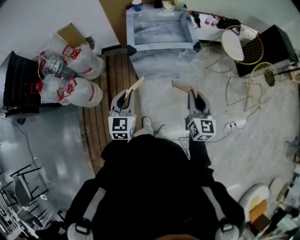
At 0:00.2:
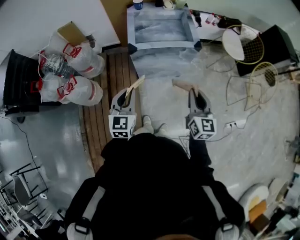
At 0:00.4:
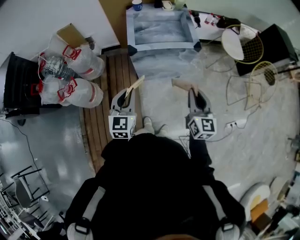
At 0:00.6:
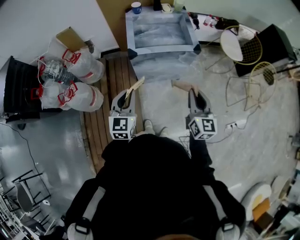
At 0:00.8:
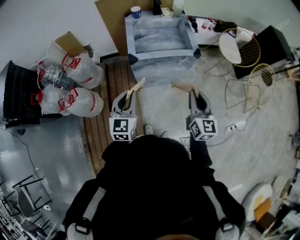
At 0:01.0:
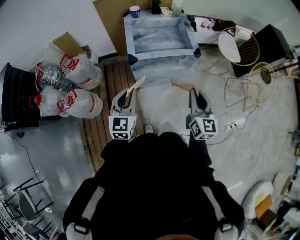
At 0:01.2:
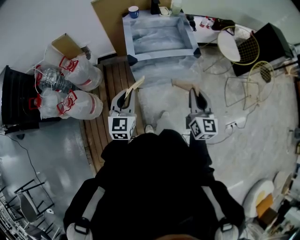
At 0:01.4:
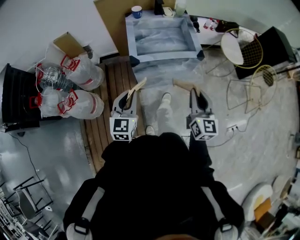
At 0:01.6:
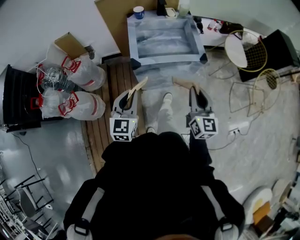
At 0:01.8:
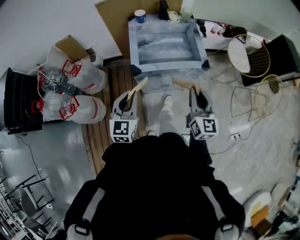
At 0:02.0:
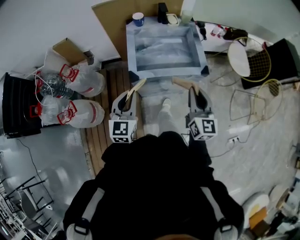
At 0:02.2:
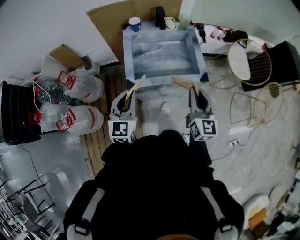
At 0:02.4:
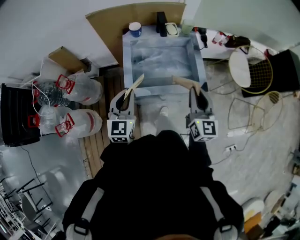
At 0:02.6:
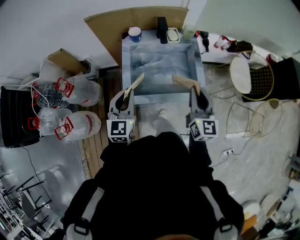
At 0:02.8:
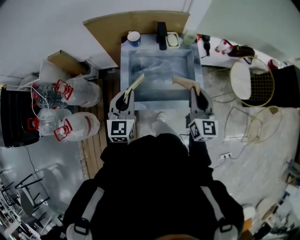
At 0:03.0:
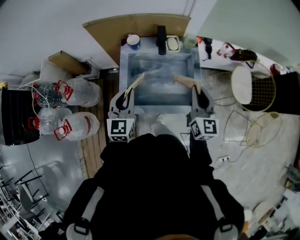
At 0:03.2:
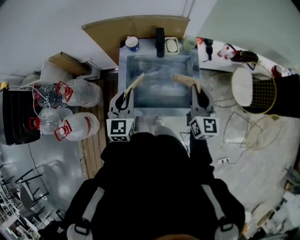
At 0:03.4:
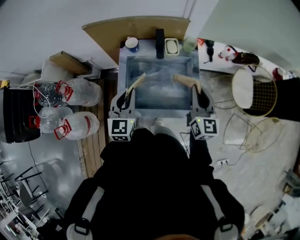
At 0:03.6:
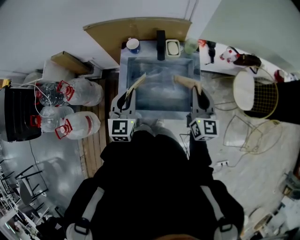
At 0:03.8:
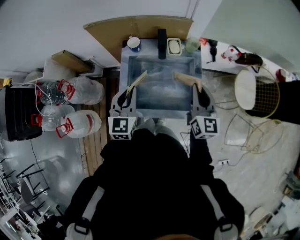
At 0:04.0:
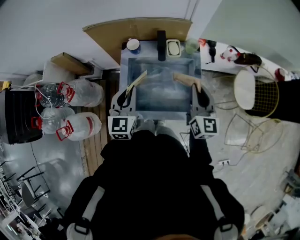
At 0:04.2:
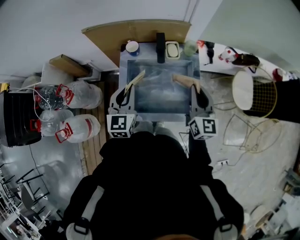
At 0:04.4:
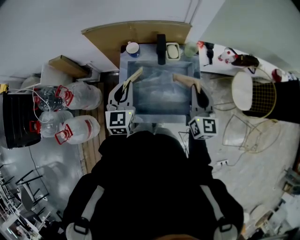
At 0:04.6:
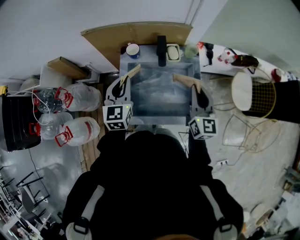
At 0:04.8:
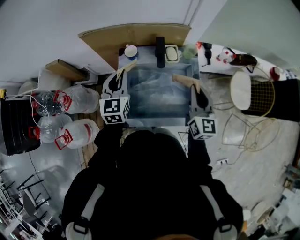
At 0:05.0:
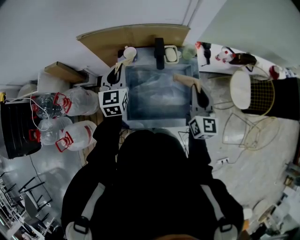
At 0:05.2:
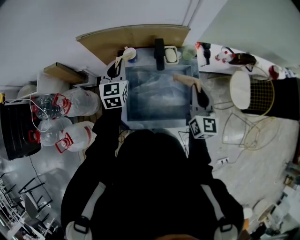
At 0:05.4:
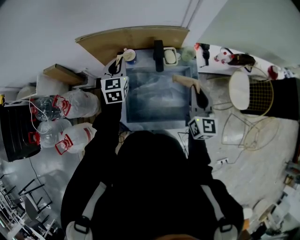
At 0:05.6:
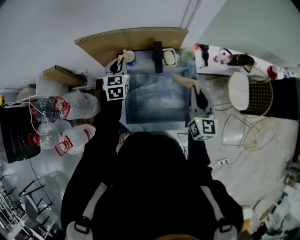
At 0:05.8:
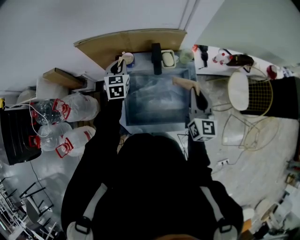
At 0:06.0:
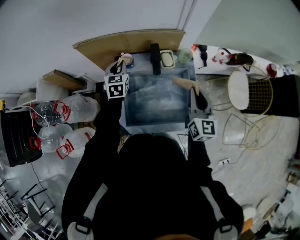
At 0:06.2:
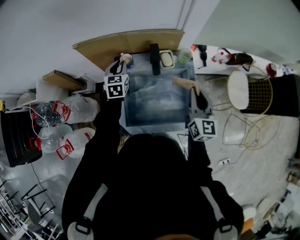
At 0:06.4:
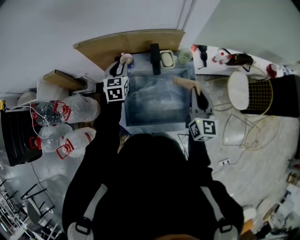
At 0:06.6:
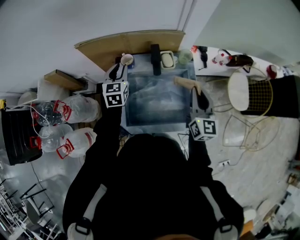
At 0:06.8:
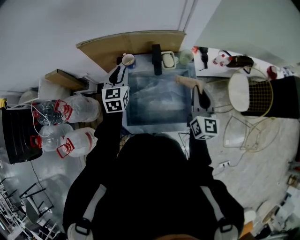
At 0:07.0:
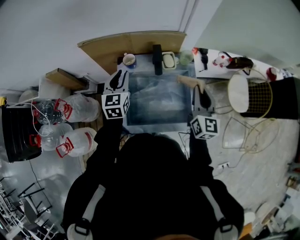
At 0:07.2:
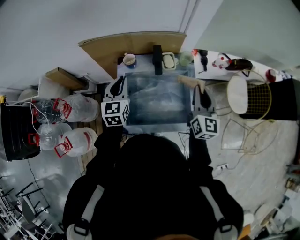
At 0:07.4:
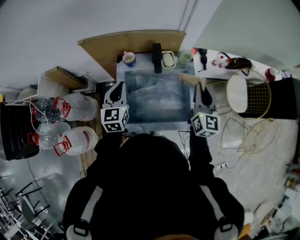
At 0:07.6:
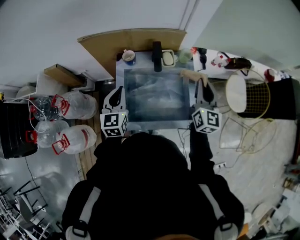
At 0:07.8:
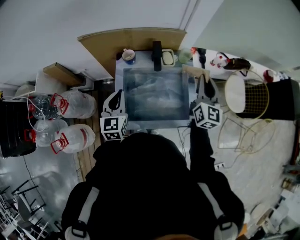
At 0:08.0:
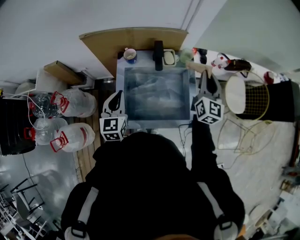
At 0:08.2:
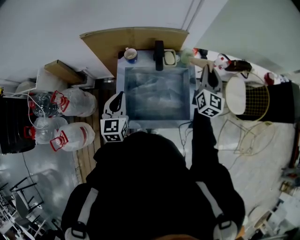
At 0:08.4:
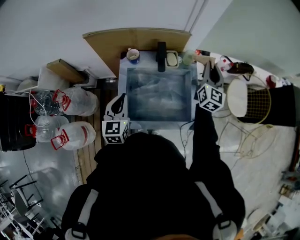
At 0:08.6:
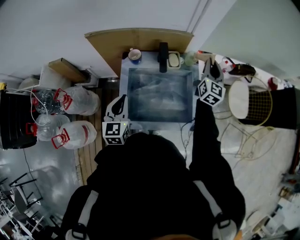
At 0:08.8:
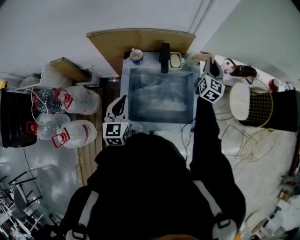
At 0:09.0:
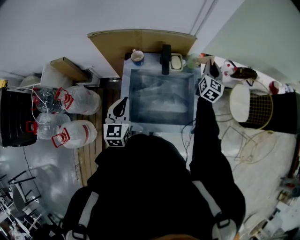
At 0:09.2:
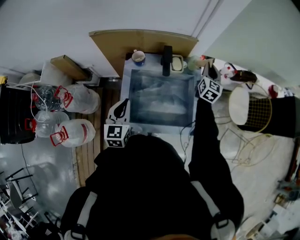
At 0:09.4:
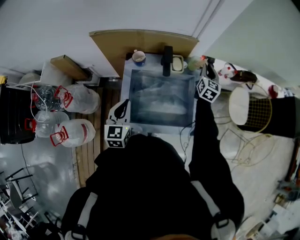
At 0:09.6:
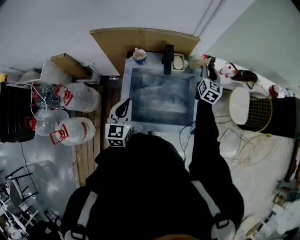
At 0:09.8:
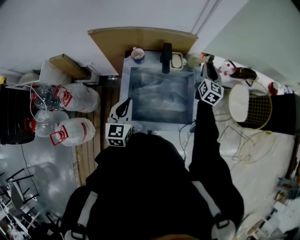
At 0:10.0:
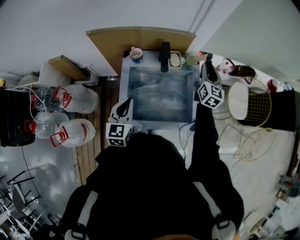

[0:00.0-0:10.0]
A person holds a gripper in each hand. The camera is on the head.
0:00.0 to 0:01.4: Both grippers travel together forward, some 10 cm.
0:01.4 to 0:02.8: The two grippers go roughly 35 cm forward.
0:02.8 to 0:04.2: The two grippers go approximately 10 cm forward.
0:04.2 to 0:05.8: The left gripper moves forward, roughly 20 cm.
0:05.8 to 0:07.2: The left gripper travels backward and upward by some 10 cm.
0:07.2 to 0:08.6: The right gripper is displaced forward by some 15 cm; the left gripper shifts about 10 cm backward.

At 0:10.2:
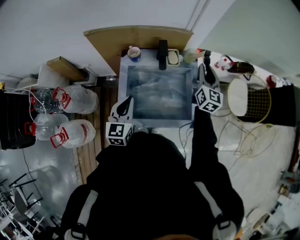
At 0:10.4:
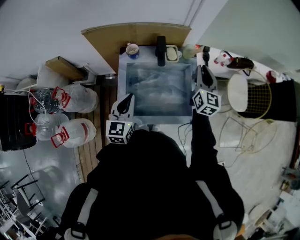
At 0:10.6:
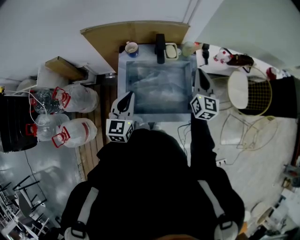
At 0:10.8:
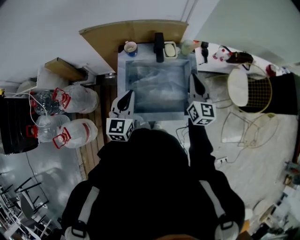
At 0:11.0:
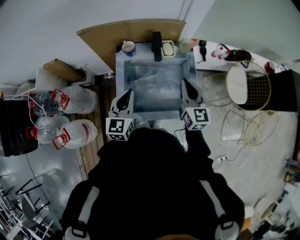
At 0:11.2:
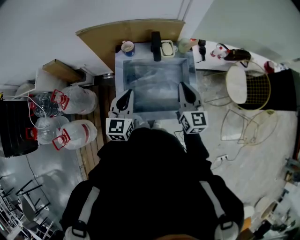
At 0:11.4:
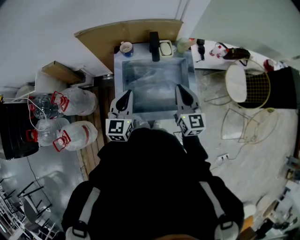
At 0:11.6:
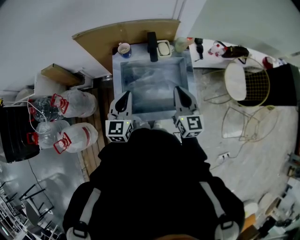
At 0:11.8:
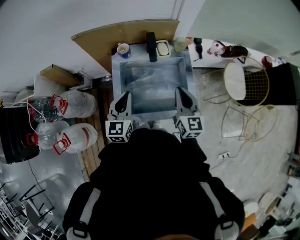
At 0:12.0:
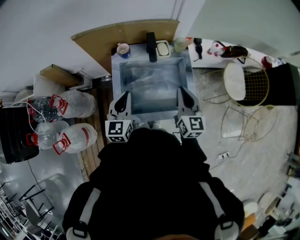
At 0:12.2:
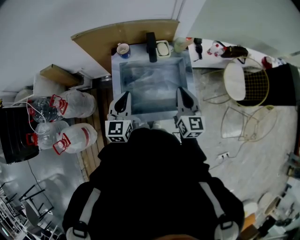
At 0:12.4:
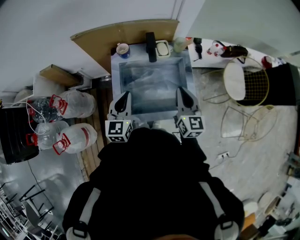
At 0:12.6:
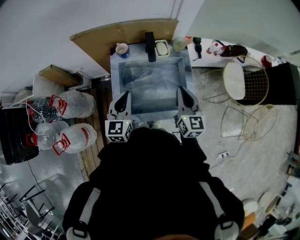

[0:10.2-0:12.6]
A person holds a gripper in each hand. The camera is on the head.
0:10.2 to 0:11.4: The right gripper heads backward and to the left, covering roughly 20 cm, and closes its fingers.
0:11.4 to 0:12.6: The grippers move only a little.

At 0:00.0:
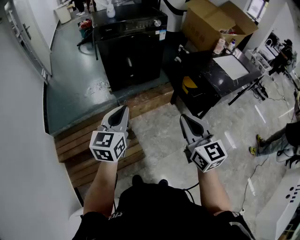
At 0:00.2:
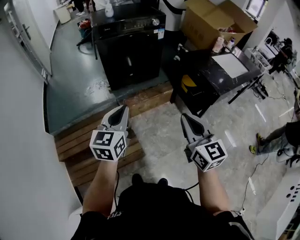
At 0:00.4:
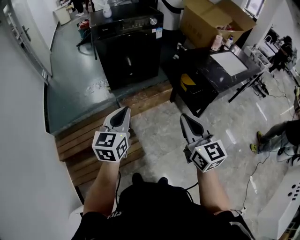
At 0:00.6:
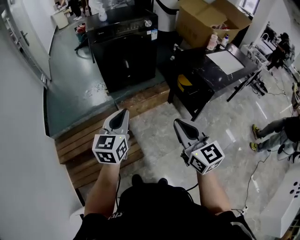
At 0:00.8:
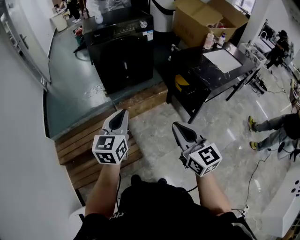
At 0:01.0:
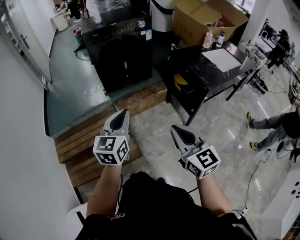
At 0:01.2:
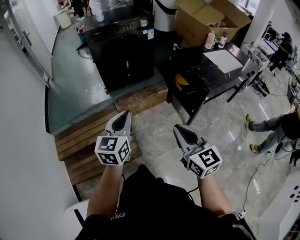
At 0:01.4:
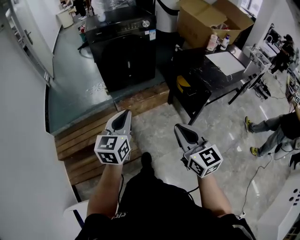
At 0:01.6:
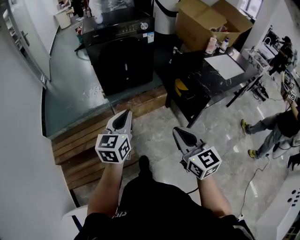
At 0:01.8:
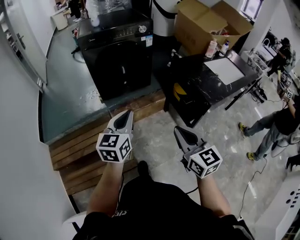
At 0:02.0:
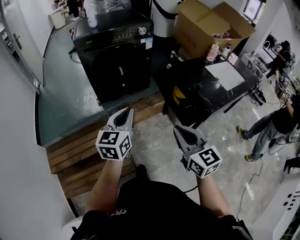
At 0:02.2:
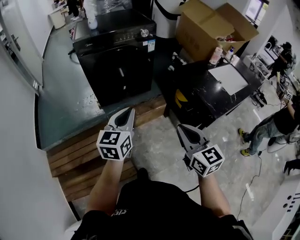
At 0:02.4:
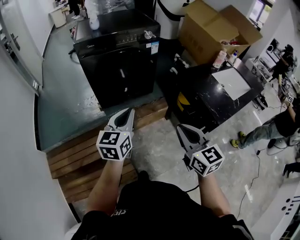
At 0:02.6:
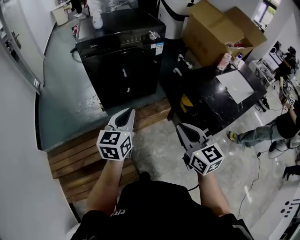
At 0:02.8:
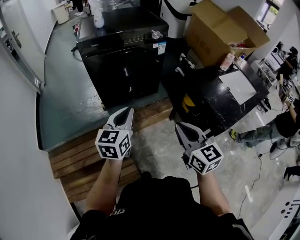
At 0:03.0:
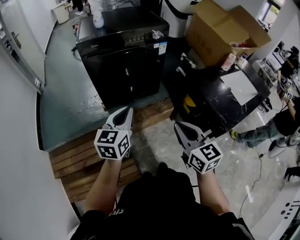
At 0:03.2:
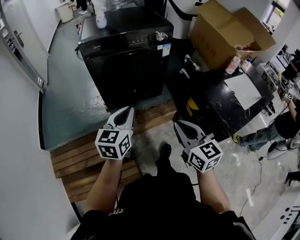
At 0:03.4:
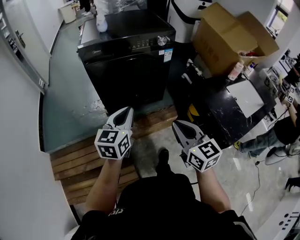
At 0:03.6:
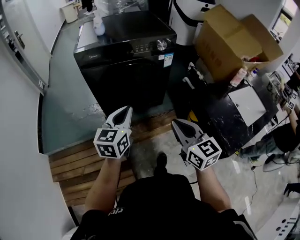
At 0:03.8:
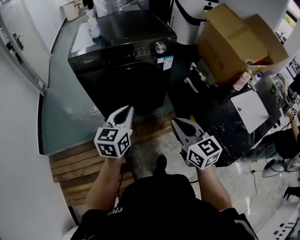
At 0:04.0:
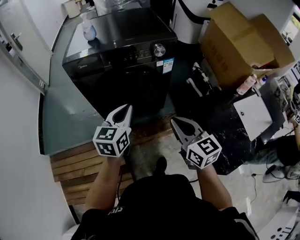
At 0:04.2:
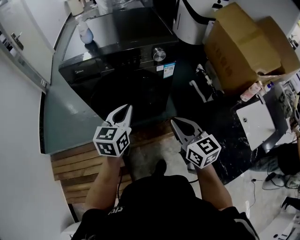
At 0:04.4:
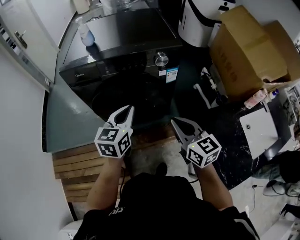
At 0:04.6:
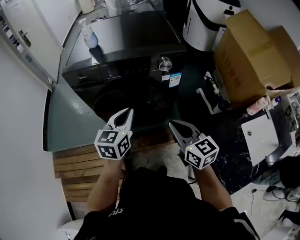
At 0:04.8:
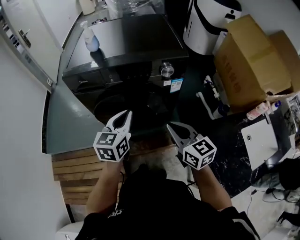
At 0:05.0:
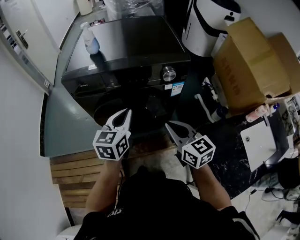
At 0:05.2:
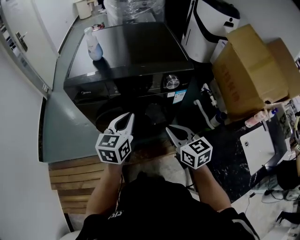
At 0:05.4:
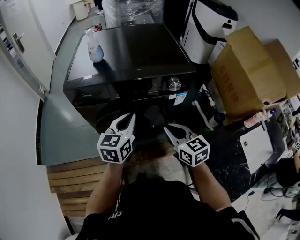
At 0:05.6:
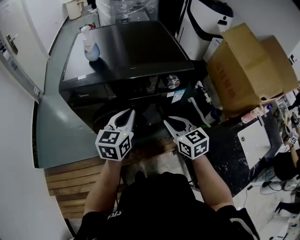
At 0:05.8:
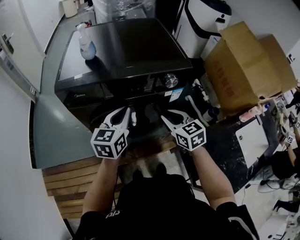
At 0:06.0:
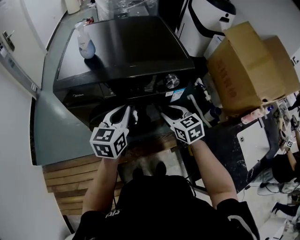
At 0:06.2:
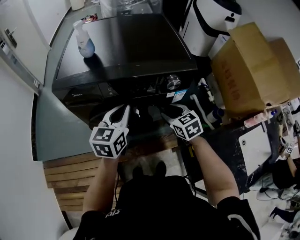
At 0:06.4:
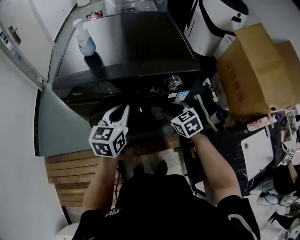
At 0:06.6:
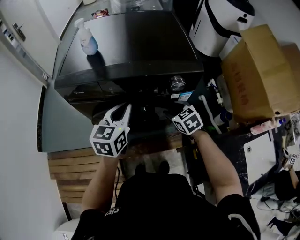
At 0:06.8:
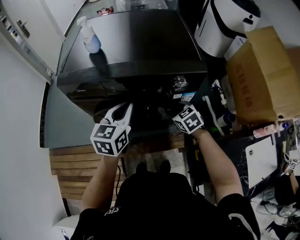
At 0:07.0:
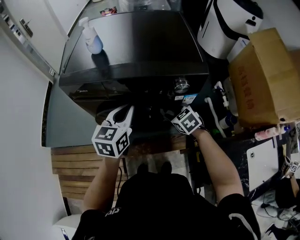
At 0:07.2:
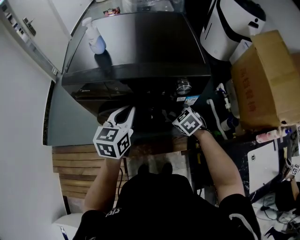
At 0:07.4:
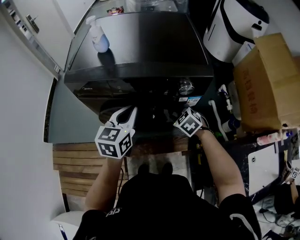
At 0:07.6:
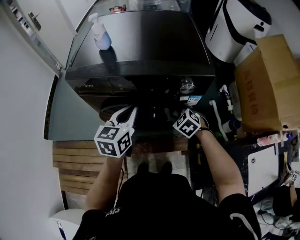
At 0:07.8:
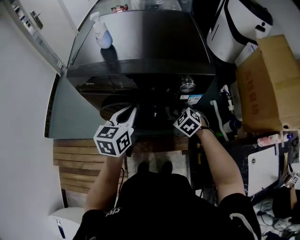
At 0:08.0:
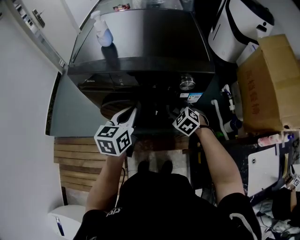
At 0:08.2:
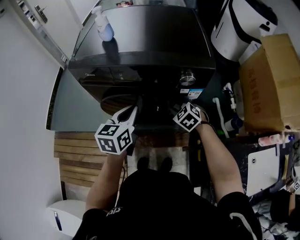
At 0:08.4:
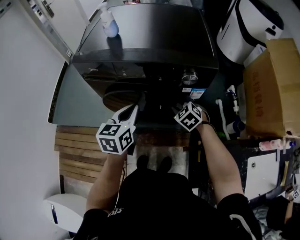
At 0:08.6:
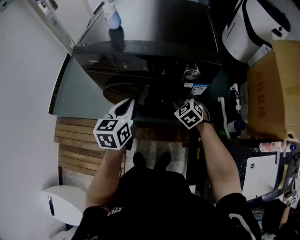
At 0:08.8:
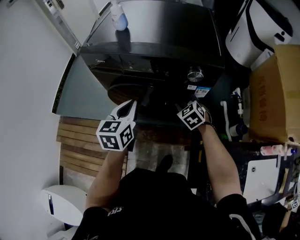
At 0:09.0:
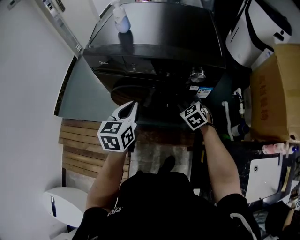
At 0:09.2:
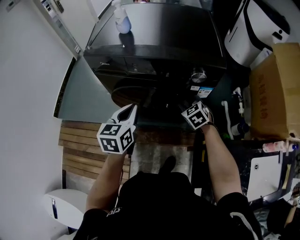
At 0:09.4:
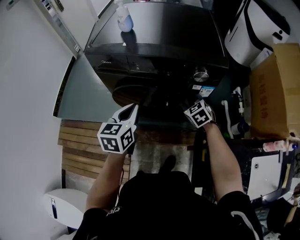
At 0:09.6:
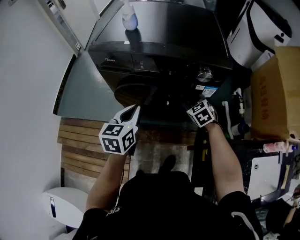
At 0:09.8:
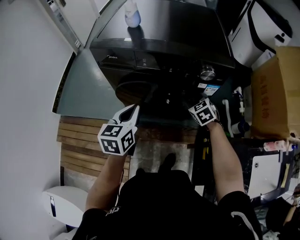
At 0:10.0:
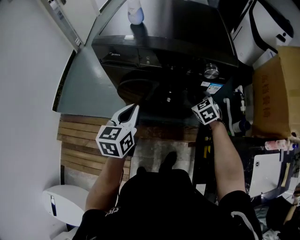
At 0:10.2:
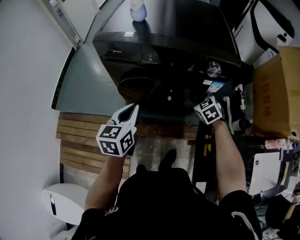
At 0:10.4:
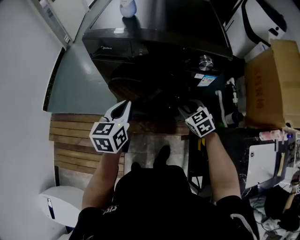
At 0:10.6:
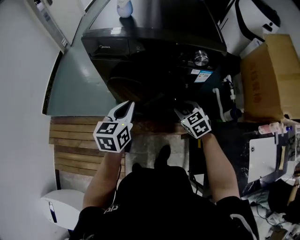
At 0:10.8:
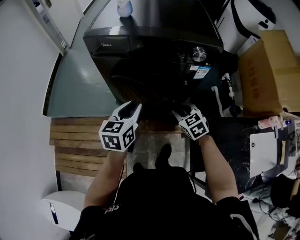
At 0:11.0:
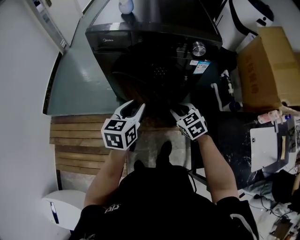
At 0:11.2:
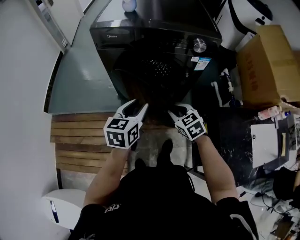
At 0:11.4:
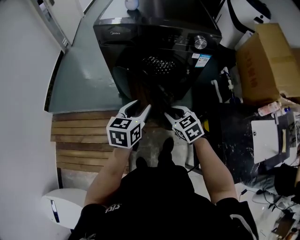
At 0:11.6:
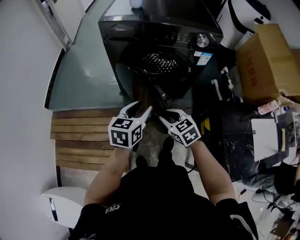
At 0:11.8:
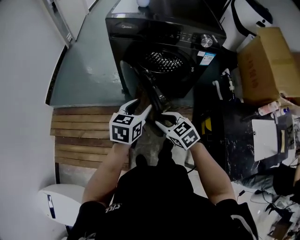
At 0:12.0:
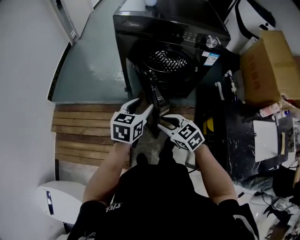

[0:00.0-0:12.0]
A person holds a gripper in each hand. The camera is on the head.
0:00.0 to 0:01.6: Both grippers travel together to the right, about 10 cm.
0:01.6 to 0:03.0: The two grippers go roughly 25 cm forward.
0:03.0 to 0:04.4: The grippers both shift forward by roughly 30 cm.
0:04.4 to 0:06.0: The right gripper goes roughly 20 cm forward, turns by some 20 degrees, and opens. Meanwhile the left gripper is displaced forward by approximately 10 cm.
0:06.0 to 0:07.6: The right gripper travels downward by some 10 cm, and turns by approximately 40 degrees.
0:07.6 to 0:09.0: The left gripper shifts approximately 5 cm backward.
0:09.0 to 0:10.4: The left gripper moves to the left, approximately 5 cm, while the right gripper heads backward, covering roughly 10 cm.
0:10.4 to 0:12.0: The left gripper moves backward, about 15 cm, and opens up, while the right gripper is displaced backward and to the left by roughly 30 cm.
